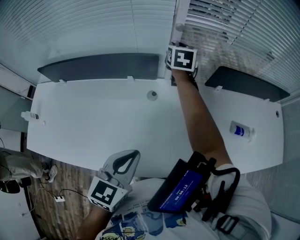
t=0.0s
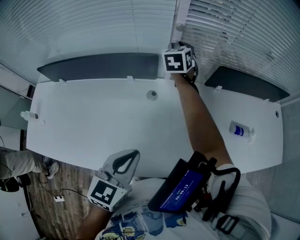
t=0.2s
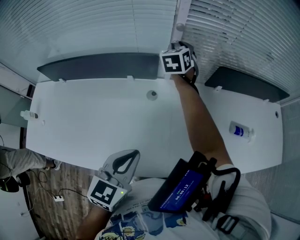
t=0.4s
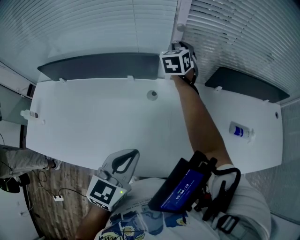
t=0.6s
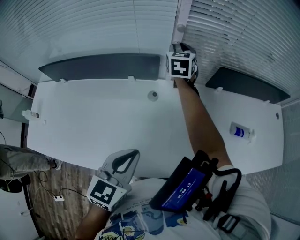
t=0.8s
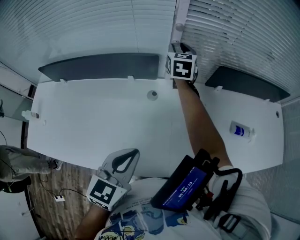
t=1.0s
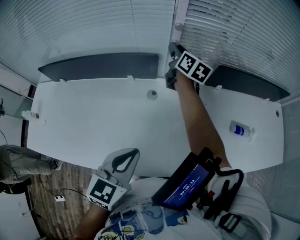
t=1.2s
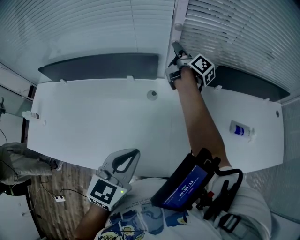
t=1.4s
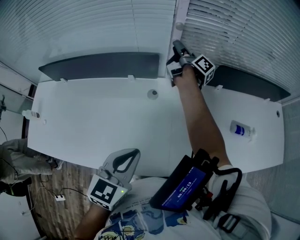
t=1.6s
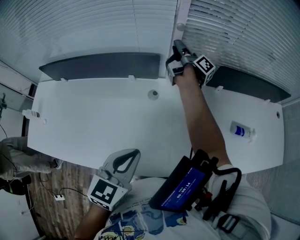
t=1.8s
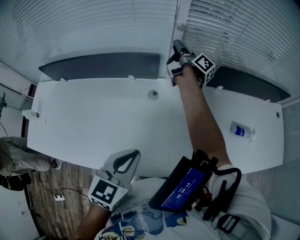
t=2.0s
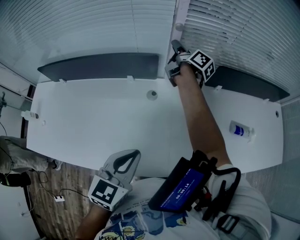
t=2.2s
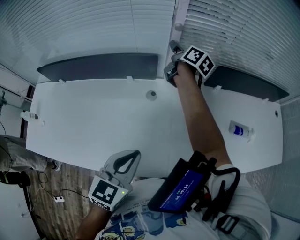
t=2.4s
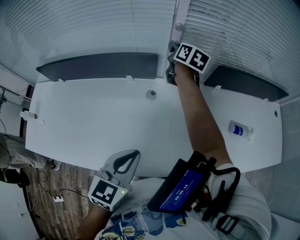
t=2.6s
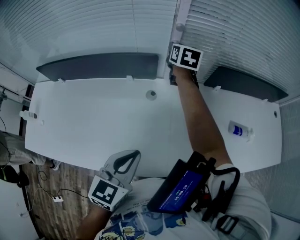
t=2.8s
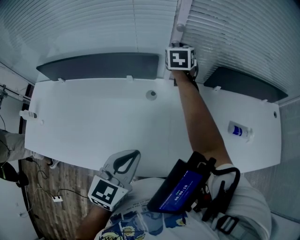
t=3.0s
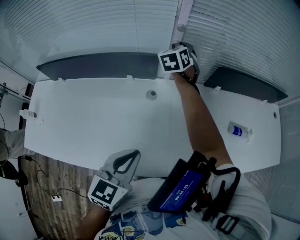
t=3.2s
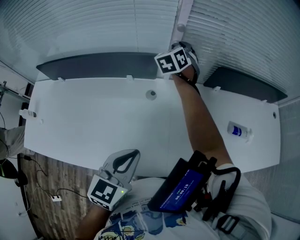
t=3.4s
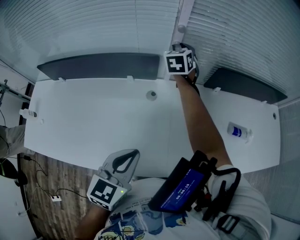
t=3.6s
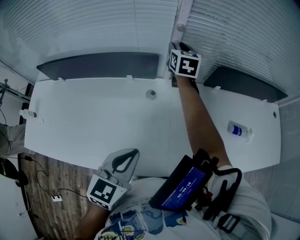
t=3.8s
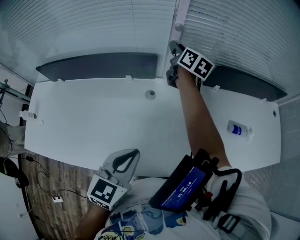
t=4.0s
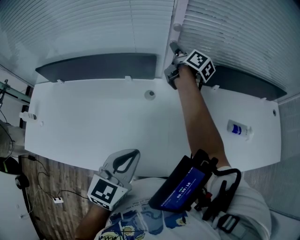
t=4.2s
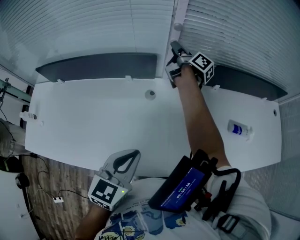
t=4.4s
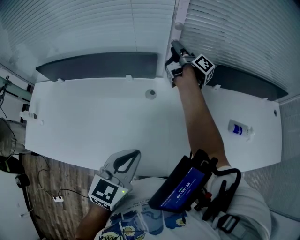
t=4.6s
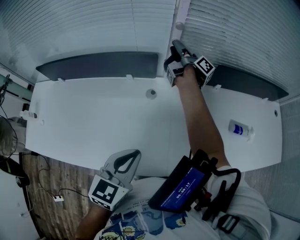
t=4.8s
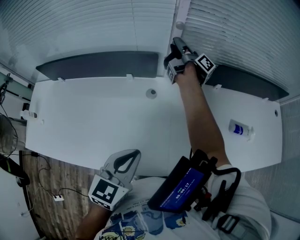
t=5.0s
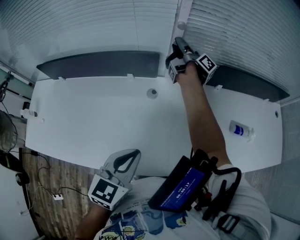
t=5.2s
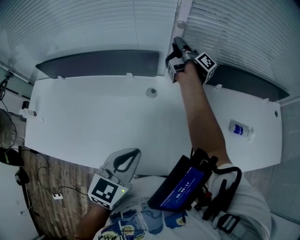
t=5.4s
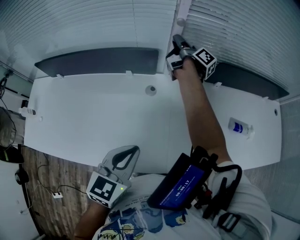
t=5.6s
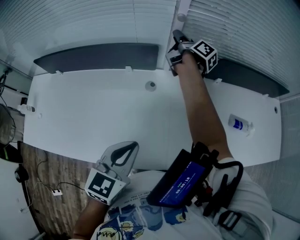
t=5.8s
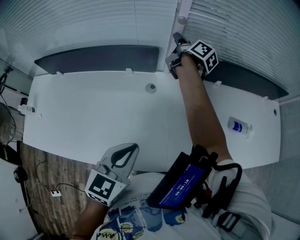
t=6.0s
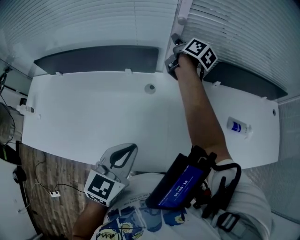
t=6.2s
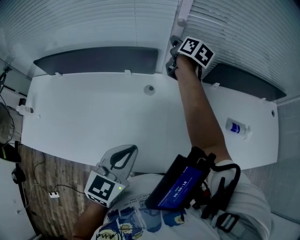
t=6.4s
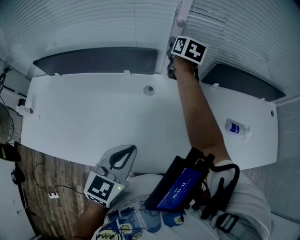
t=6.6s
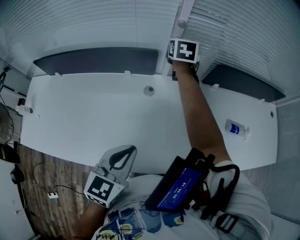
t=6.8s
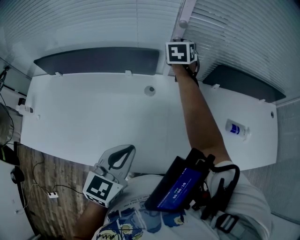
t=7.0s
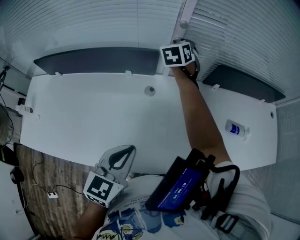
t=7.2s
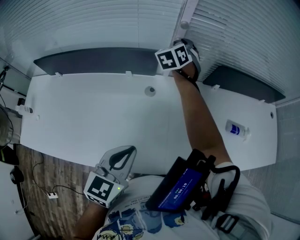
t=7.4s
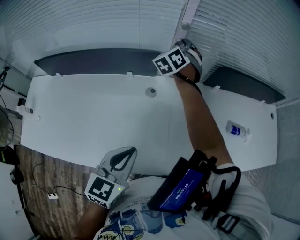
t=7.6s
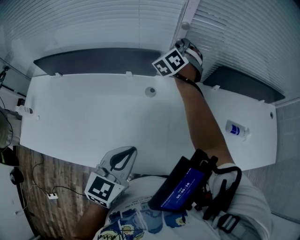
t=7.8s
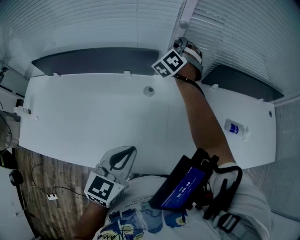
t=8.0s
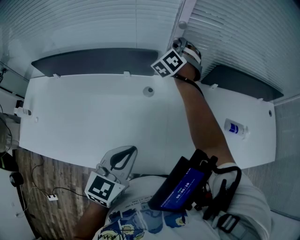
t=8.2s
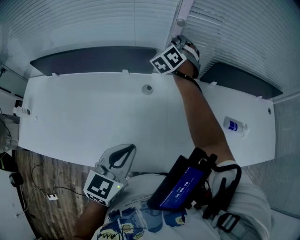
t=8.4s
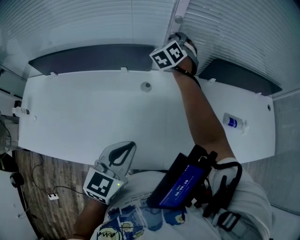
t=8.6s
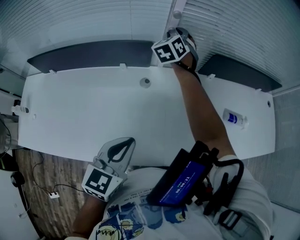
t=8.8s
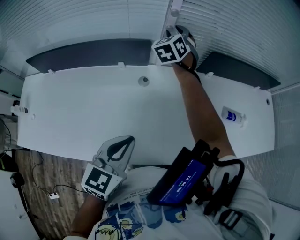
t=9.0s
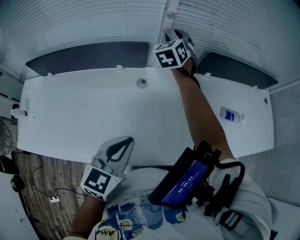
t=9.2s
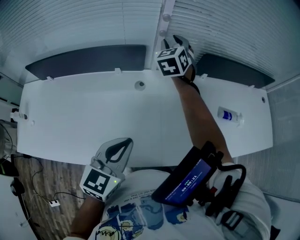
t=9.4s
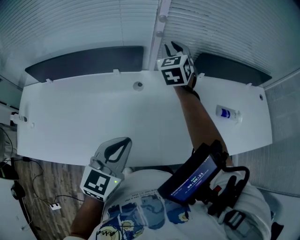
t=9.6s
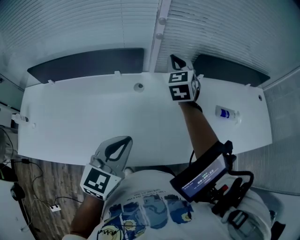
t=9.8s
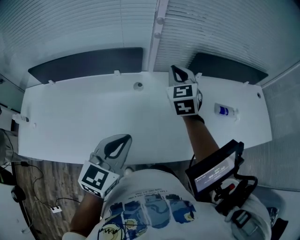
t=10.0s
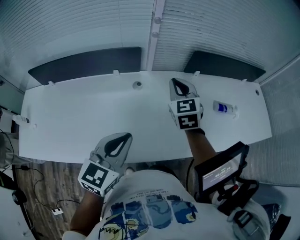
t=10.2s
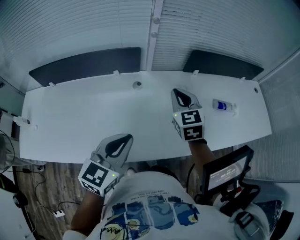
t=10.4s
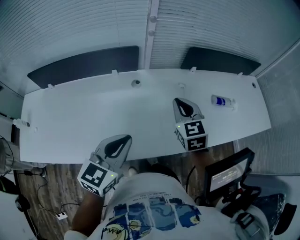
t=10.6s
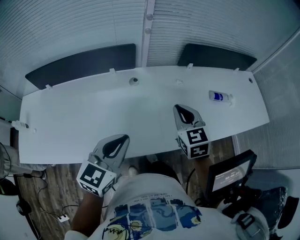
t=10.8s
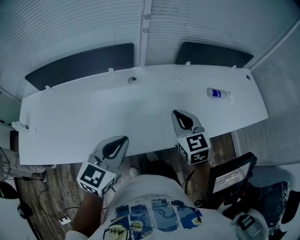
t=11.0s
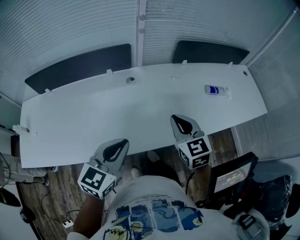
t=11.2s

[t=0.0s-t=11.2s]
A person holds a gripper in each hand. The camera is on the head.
t=0.0s to t=1.6s: The right gripper twists approximately 80 degrees clockwise, seen from behind.
t=1.6s to t=3.2s: The right gripper twists roughly 100 degrees counterclockwise, seen from behind.
t=3.2s to t=4.8s: The right gripper twists about 110 degrees clockwise, seen from behind.
t=4.8s to t=6.4s: The right gripper rotates around the line of its fingers by approximately 50 degrees, counterclockwise from behind.
t=6.4s to t=8.0s: The right gripper rolls counterclockwise, seen from behind, by some 90 degrees.
t=8.0s to t=9.6s: The right gripper travels backward, upward and to the right by approximately 15 cm, and swivels some 40 degrees.
t=9.6s to t=11.2s: The right gripper travels backward by some 35 cm, swivels some 20 degrees, and closes up; the left gripper heads backward, covering roughly 10 cm.

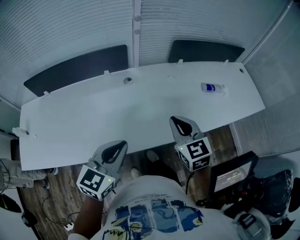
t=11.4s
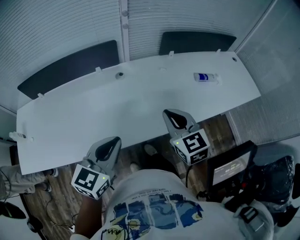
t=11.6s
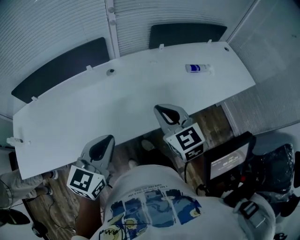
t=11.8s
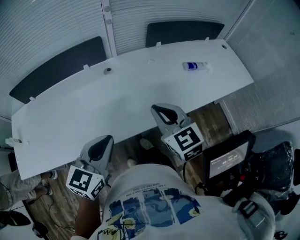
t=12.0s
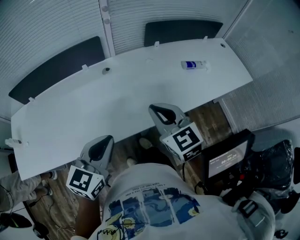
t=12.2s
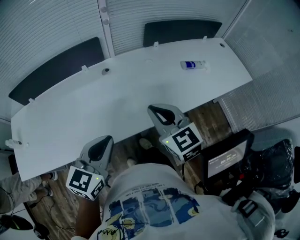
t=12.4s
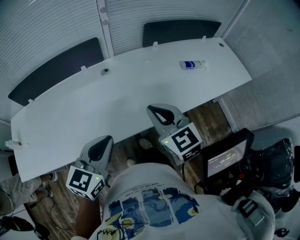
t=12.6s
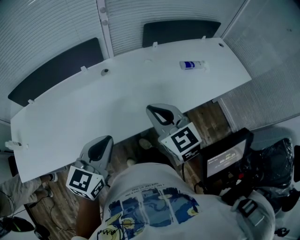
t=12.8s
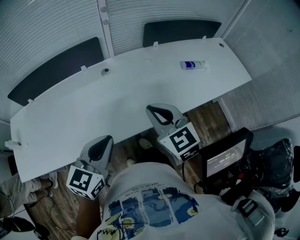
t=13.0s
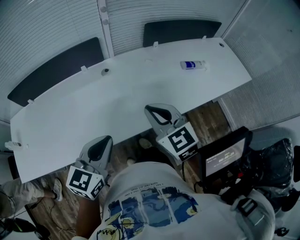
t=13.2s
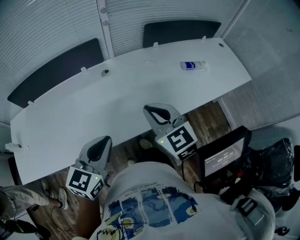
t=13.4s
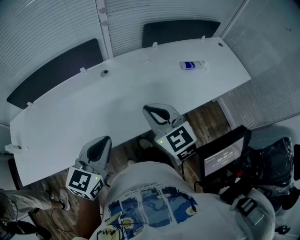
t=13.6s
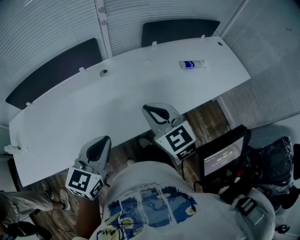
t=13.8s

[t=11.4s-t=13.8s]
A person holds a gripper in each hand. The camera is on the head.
t=11.4s to t=12.6s: The right gripper ends up about 5 cm from where it was.
t=12.6s to t=13.8s: There are only small adjustments of the grippers.

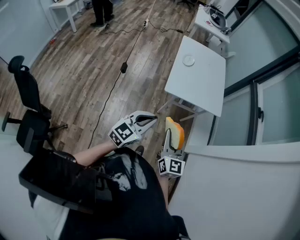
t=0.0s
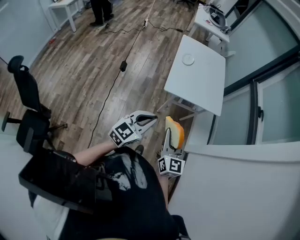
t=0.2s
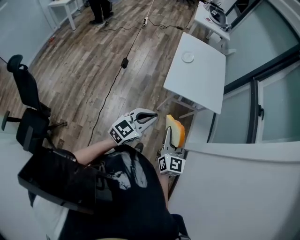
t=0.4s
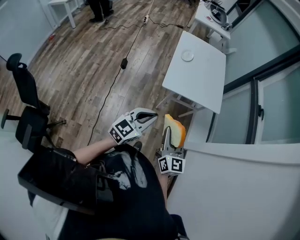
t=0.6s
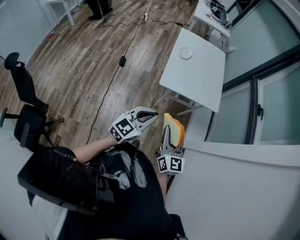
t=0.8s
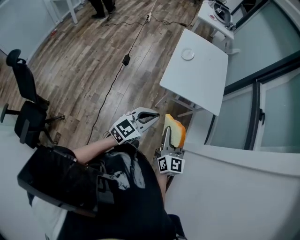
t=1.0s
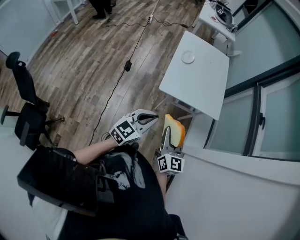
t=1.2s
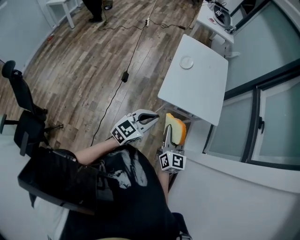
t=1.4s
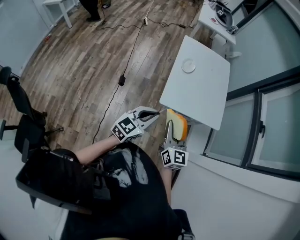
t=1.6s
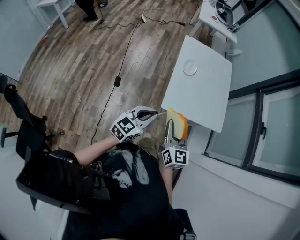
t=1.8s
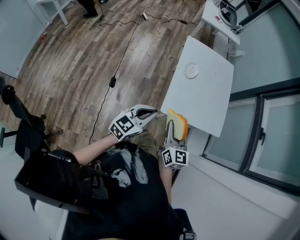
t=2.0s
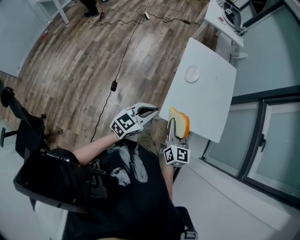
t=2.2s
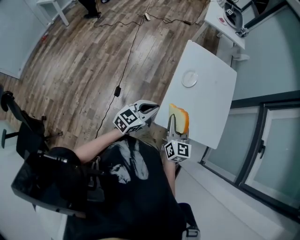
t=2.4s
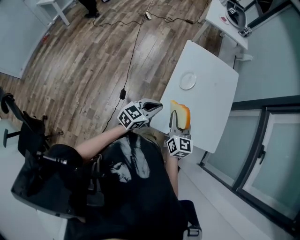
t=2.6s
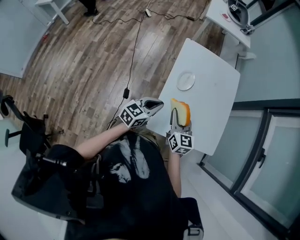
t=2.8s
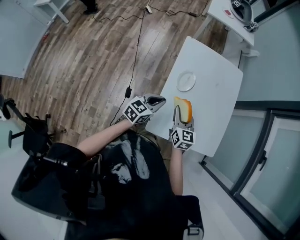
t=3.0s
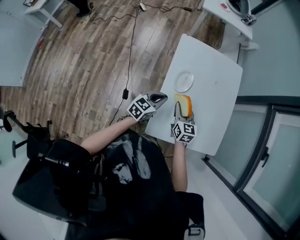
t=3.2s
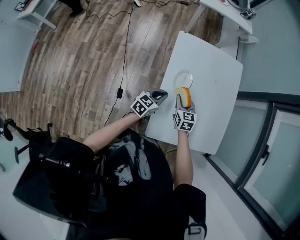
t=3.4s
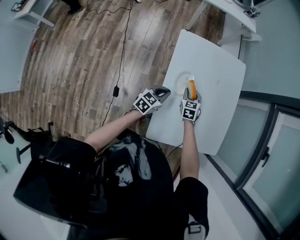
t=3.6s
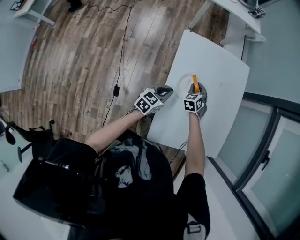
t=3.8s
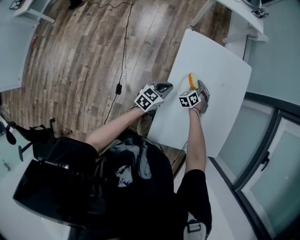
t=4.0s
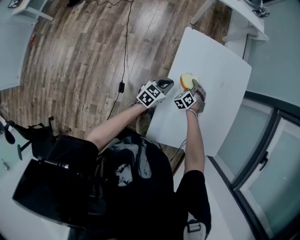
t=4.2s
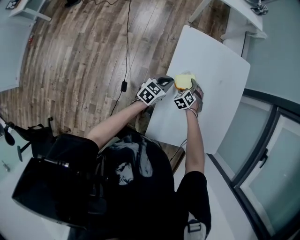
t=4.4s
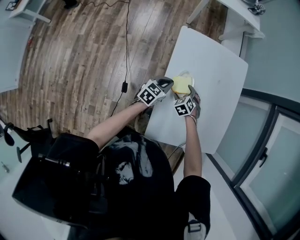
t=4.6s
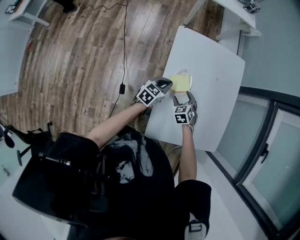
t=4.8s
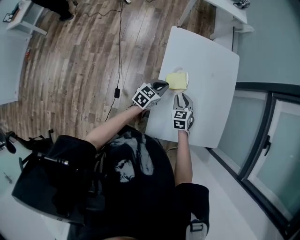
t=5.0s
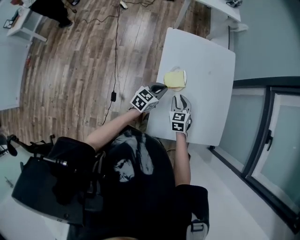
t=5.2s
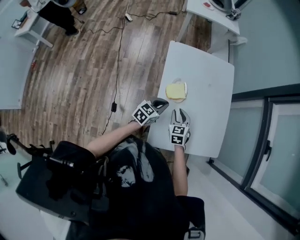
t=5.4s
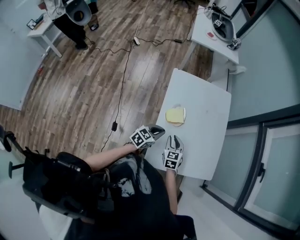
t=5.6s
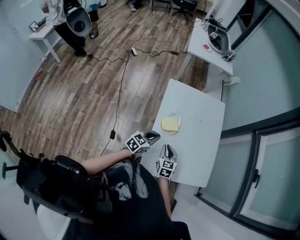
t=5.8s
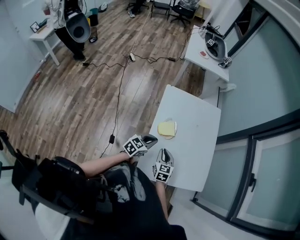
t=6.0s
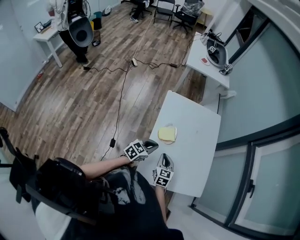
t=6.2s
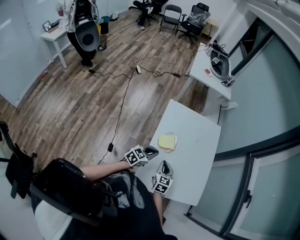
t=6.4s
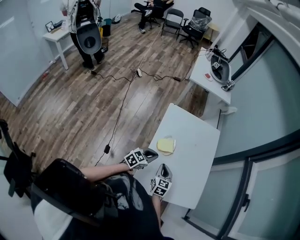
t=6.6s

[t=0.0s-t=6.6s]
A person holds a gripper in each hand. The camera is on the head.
t=0.0s to t=1.6s: Both grippers move forward, roughly 20 cm.
t=1.6s to t=3.2s: The pair of grippers is taken forward, roughly 40 cm.
t=3.2s to t=5.0s: The left gripper goes about 10 cm forward, while the right gripper goes about 5 cm downward, moves roughly 20 cm forward and comes back, rotates approximately 30 degrees, and opens, then closes again.
t=5.0s to t=6.6s: The left gripper is displaced backward, upward and to the right by approximately 10 cm; the right gripper travels backward and upward by roughly 10 cm, and turns by approximately 20 degrees.

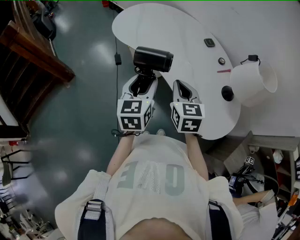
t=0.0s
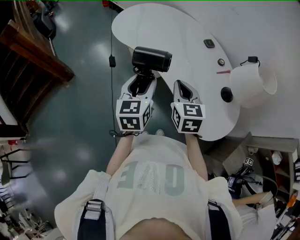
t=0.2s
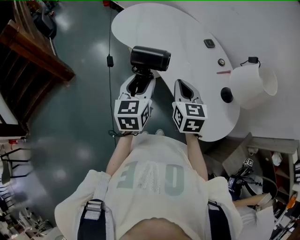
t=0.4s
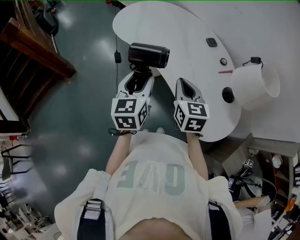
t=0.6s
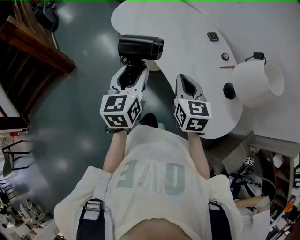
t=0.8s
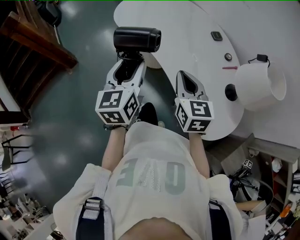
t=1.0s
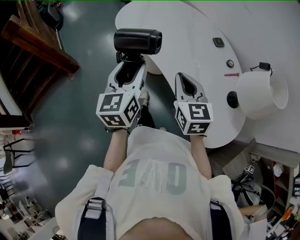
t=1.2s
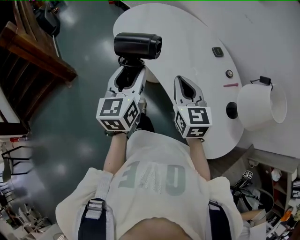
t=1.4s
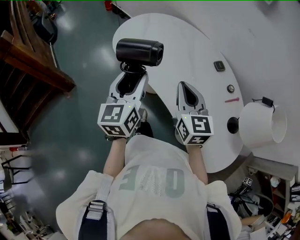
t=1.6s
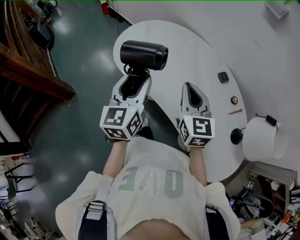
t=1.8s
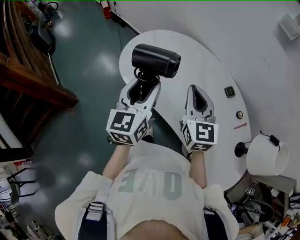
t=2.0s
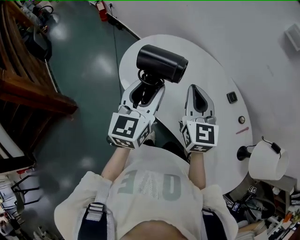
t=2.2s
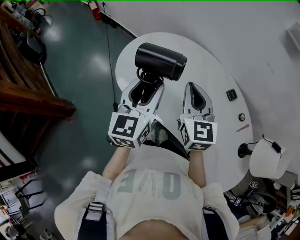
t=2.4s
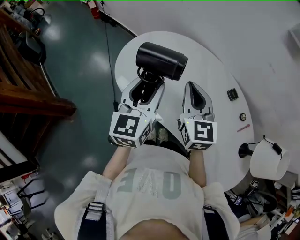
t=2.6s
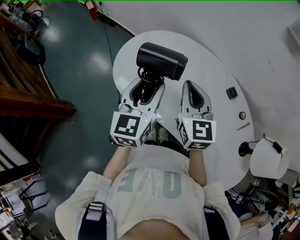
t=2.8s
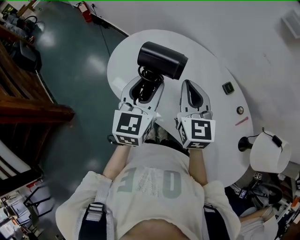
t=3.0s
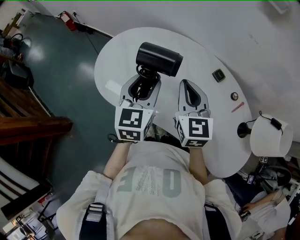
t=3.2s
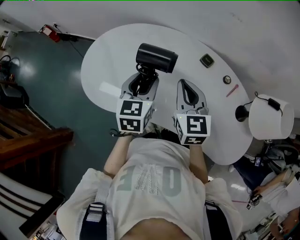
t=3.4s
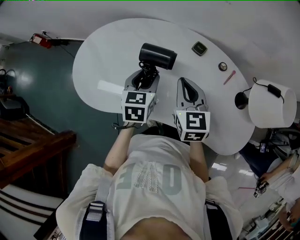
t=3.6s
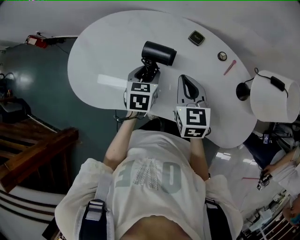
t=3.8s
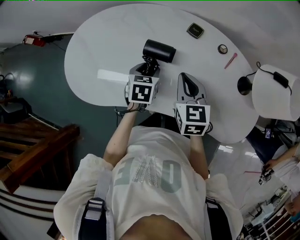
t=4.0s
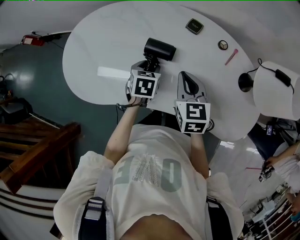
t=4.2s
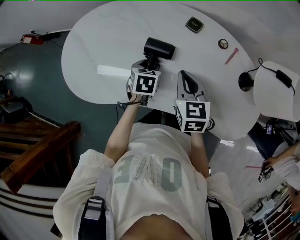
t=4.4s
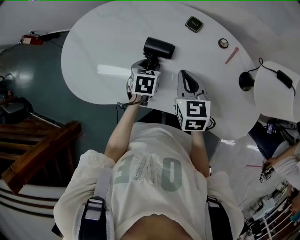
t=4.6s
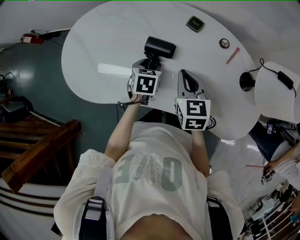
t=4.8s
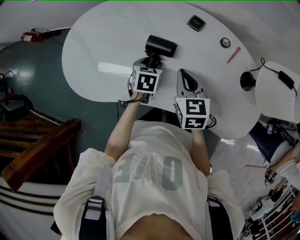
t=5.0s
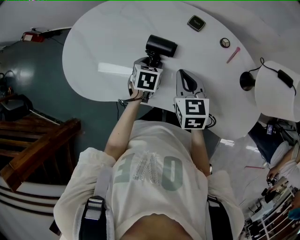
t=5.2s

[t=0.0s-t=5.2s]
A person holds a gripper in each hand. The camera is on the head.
t=0.0s to t=1.8s: The two grippers go approximately 20 cm forward.
t=1.8s to t=3.4s: The right gripper changes its angle by some 30 degrees, while the left gripper moves about 20 cm, and swivels some 40 degrees.
t=3.4s to t=5.2s: The right gripper shifts some 15 cm downward and to the right, while the left gripper heads downward and to the right, covering roughly 25 cm, and points its fingers roughly 30 degrees further downward.
